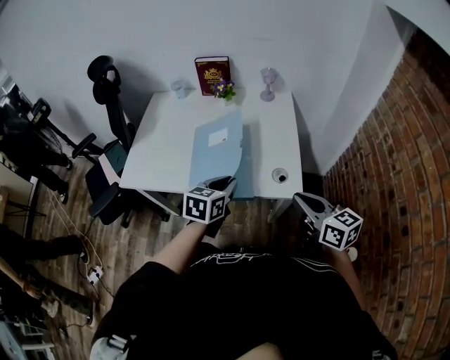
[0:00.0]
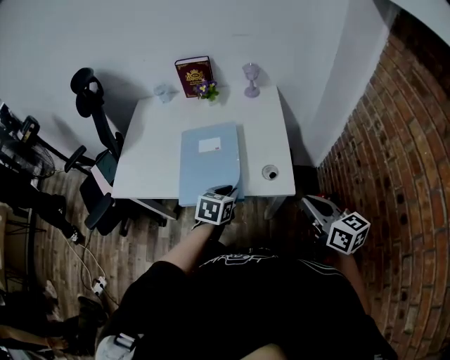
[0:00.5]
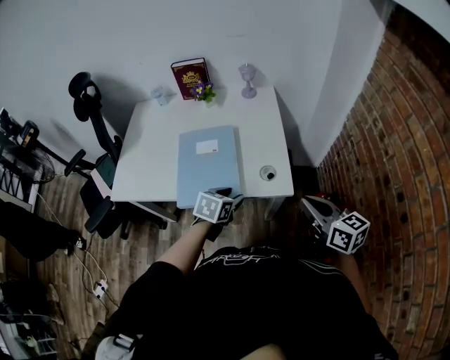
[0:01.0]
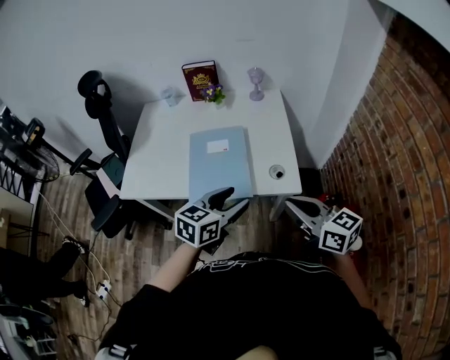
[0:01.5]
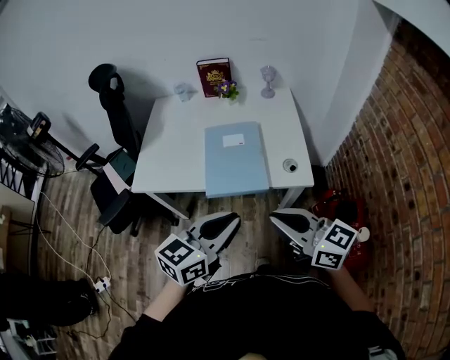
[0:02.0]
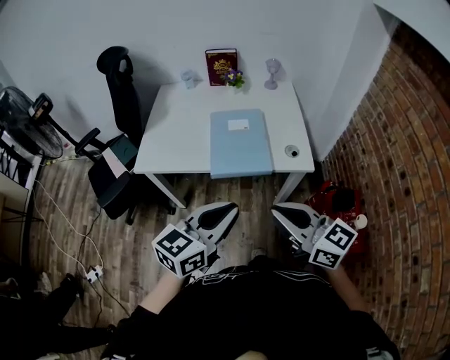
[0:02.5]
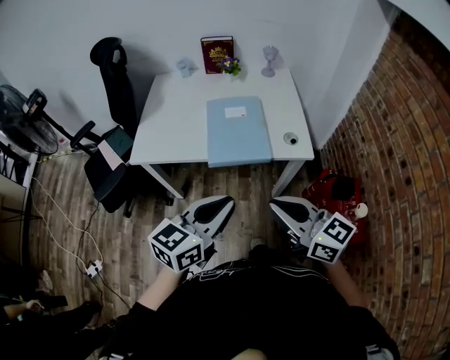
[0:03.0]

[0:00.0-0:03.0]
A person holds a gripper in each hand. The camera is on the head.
0:00.0 to 0:01.5: The left gripper goes approximately 5 cm backward, reaches approximately 10 cm downward, then returns, and opens. The right gripper moves approximately 5 cm to the right and comes back.
0:01.5 to 0:03.0: The right gripper travels to the left and backward by approximately 20 cm. The left gripper moves backward, to the left and upward, some 20 cm, and closes its fingers.

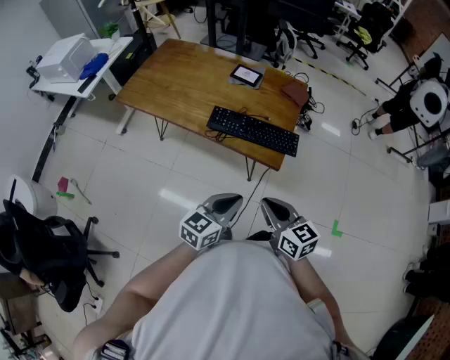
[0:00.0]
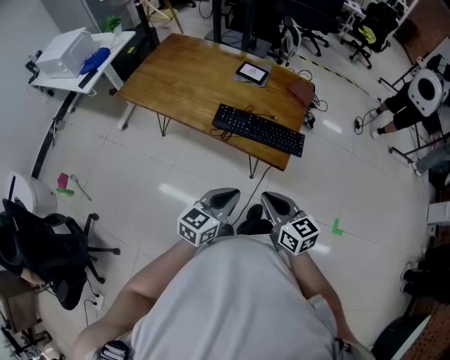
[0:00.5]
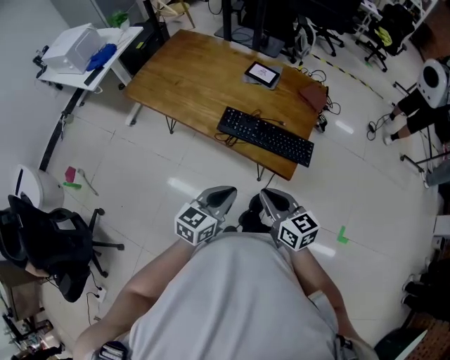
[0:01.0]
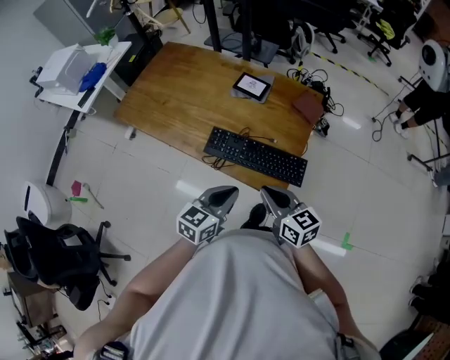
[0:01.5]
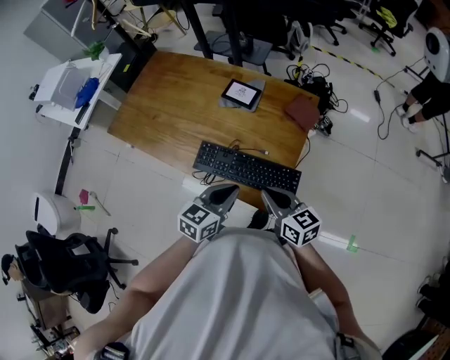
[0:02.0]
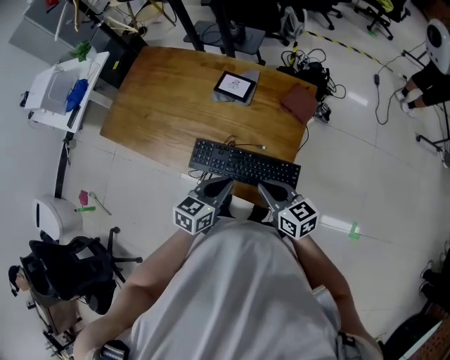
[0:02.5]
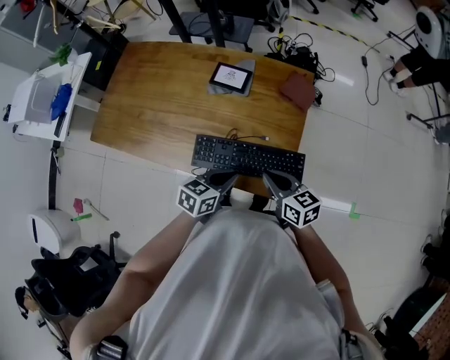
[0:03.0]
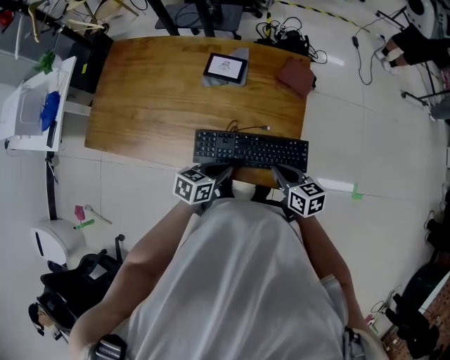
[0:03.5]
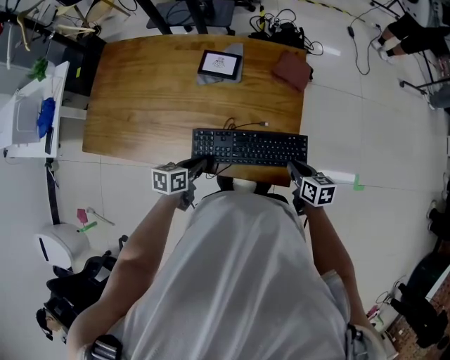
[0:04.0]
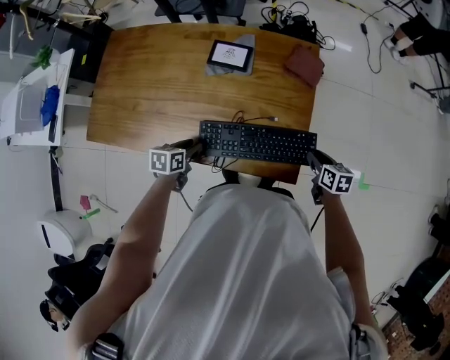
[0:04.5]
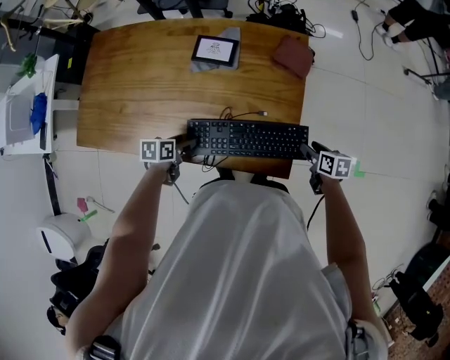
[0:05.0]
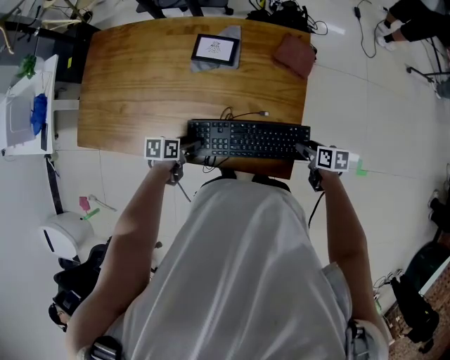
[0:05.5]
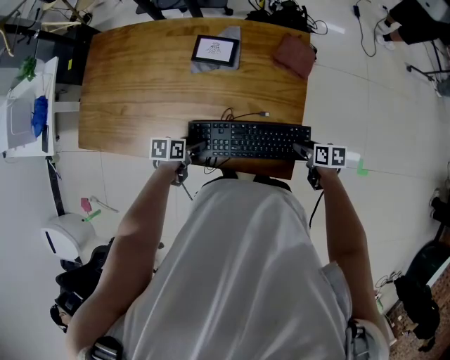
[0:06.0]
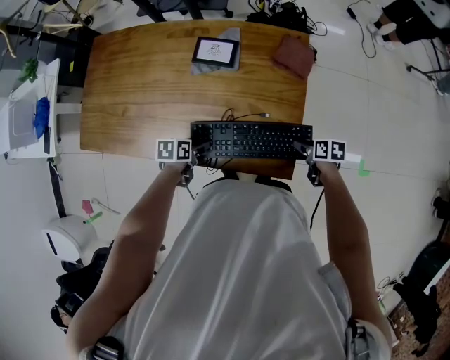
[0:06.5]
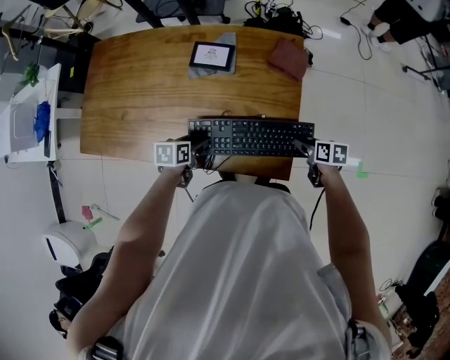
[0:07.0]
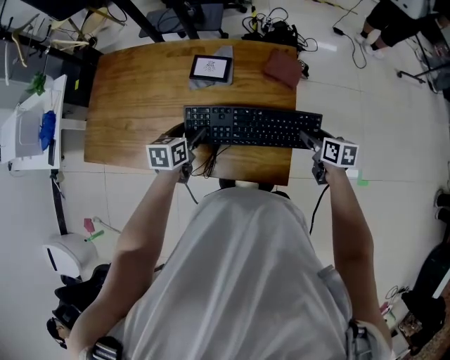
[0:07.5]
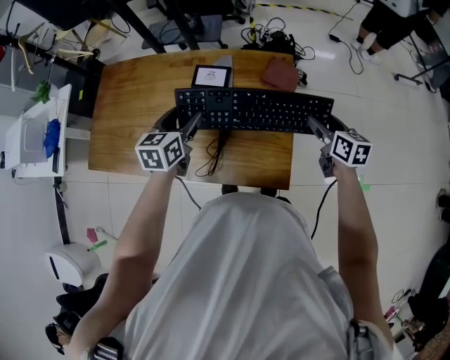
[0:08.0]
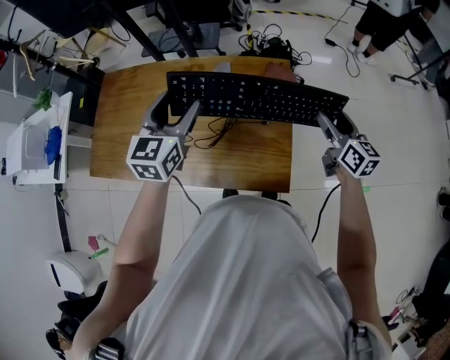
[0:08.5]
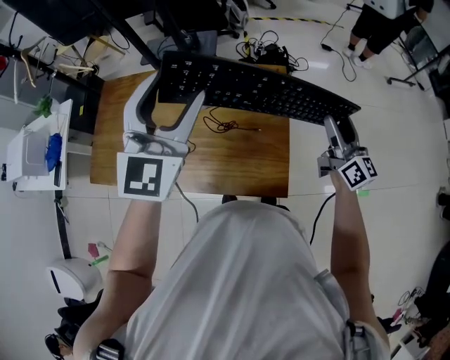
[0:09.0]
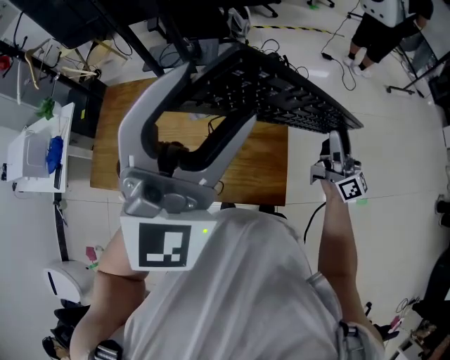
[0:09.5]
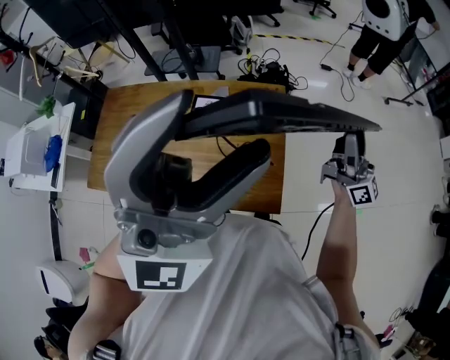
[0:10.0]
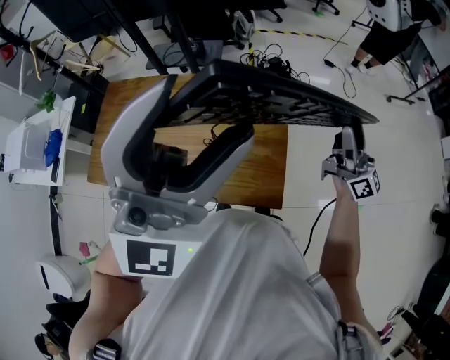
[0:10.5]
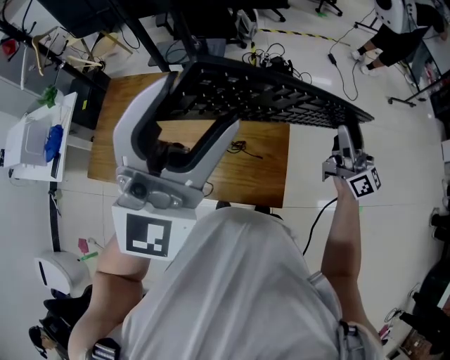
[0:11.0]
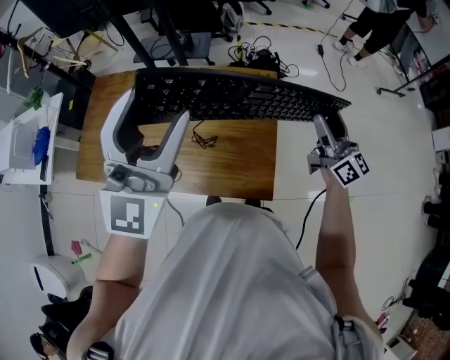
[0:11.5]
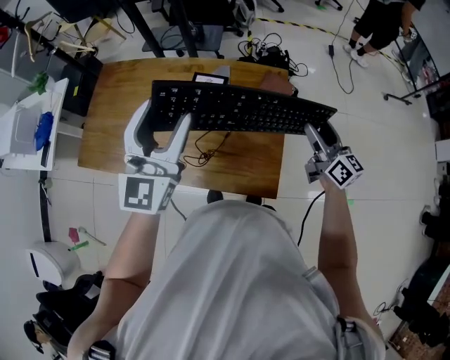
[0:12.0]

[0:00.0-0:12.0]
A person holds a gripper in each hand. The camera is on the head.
0:00.0 to 0:02.0: The grippers both shift forward by some 20 cm.
0:02.0 to 0:04.0: The left gripper is displaced to the left and downward by roughly 20 cm, and changes its angle by roughly 30 degrees, while the right gripper shifts approximately 15 cm downward and to the right, and turns by about 40 degrees.
0:04.0 to 0:06.0: The two grippers go about 5 cm downward. The left gripper opens up. The right gripper changes its angle by some 20 degrees, and opens.
0:06.0 to 0:08.0: The two grippers go roughly 25 cm upward and forward. The right gripper changes its angle by approximately 40 degrees. The left gripper changes its angle by about 50 degrees.
0:08.0 to 0:10.0: The right gripper heads upward, covering roughly 20 cm, and points its fingers approximately 60 degrees further upward. The left gripper heads upward and to the right, covering some 40 cm, and angles its fingers upward, by roughly 50 degrees.
0:10.0 to 0:12.0: The right gripper travels downward and to the left by approximately 15 cm, and tips its fingers downward by approximately 30 degrees; the left gripper moves downward and to the left, some 25 cm, and changes its angle by roughly 40 degrees.

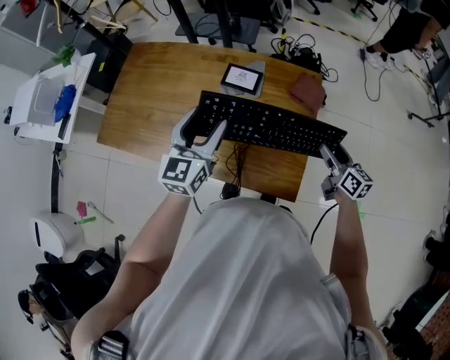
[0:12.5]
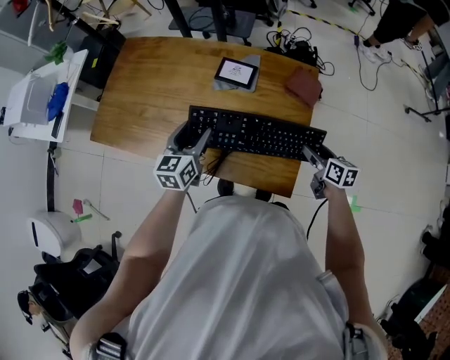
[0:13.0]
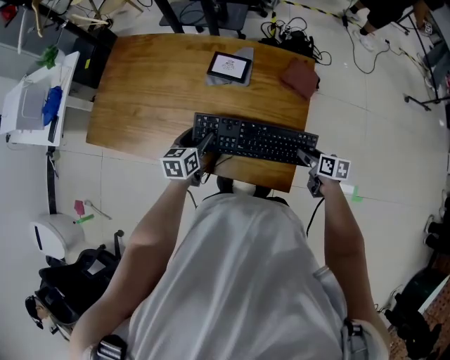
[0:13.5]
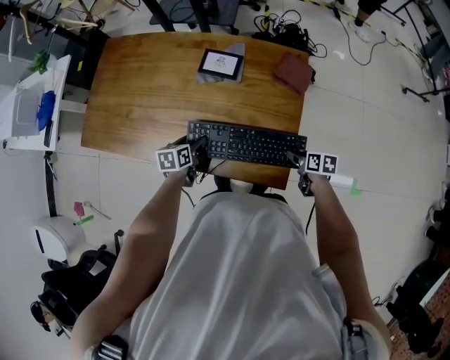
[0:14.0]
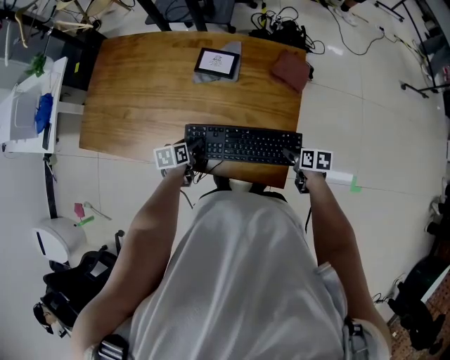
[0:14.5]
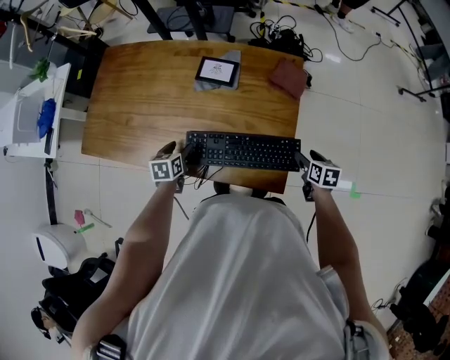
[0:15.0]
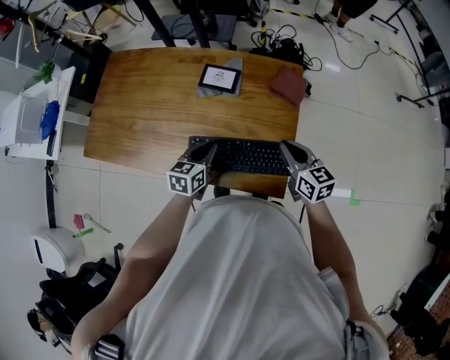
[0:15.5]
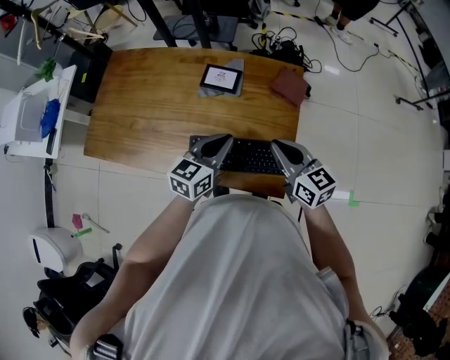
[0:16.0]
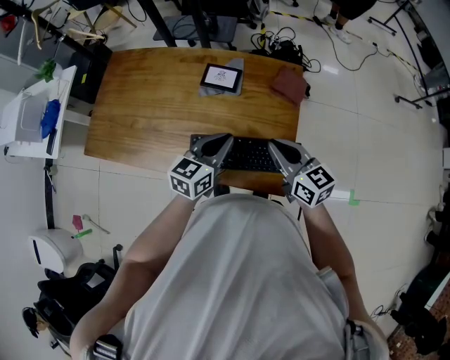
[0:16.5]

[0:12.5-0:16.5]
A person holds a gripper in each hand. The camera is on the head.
0:12.5 to 0:14.5: The left gripper goes approximately 30 cm downward, and tilts its fingers some 50 degrees downward. Meanwhile the right gripper travels downward by approximately 20 cm, and angles its fingers downward, by about 40 degrees.
0:14.5 to 0:16.5: The left gripper goes roughly 25 cm upward and to the right, points its fingers about 40 degrees further upward, and closes its fingers. Meanwhile the right gripper travels upward and to the left by approximately 30 cm, points its fingers some 40 degrees further upward, and closes up.

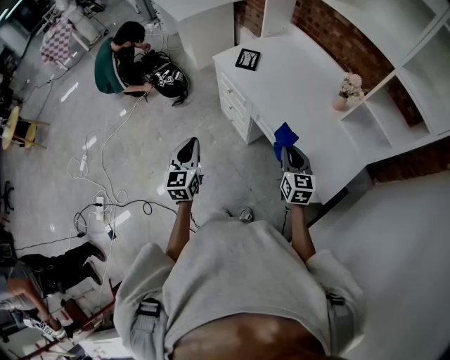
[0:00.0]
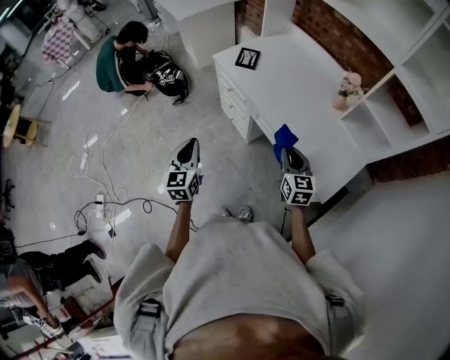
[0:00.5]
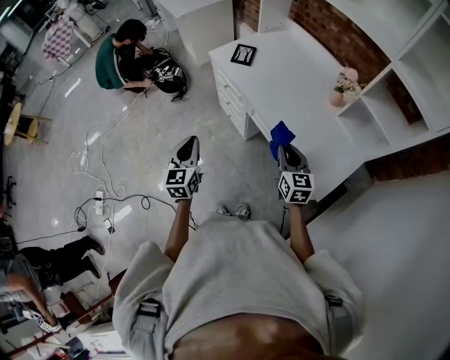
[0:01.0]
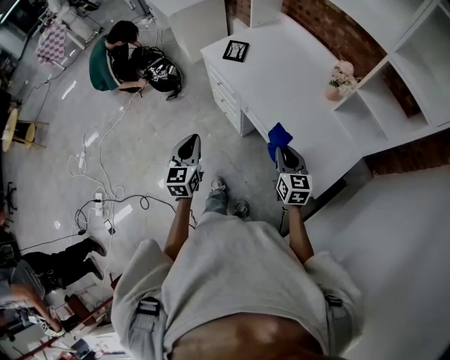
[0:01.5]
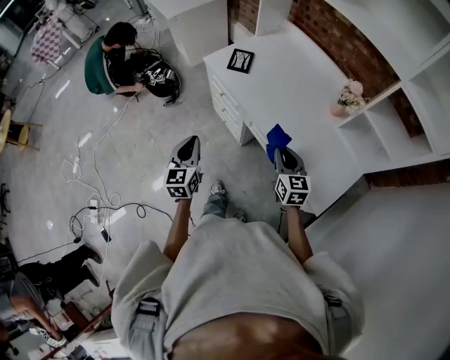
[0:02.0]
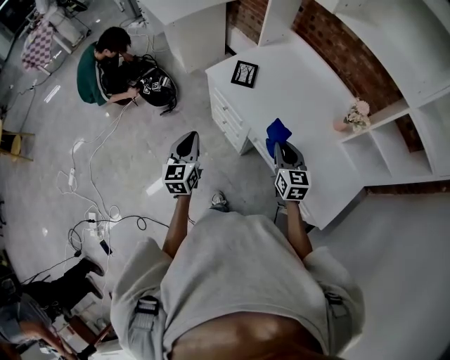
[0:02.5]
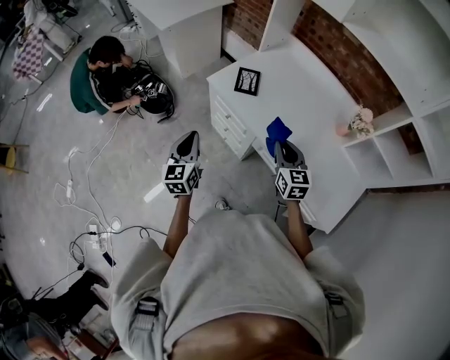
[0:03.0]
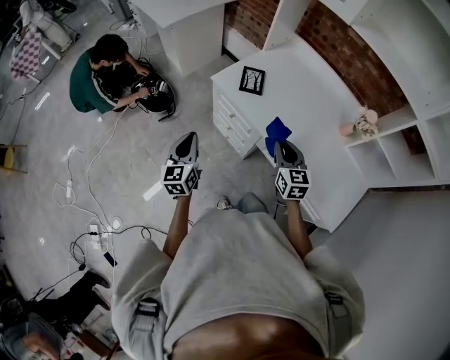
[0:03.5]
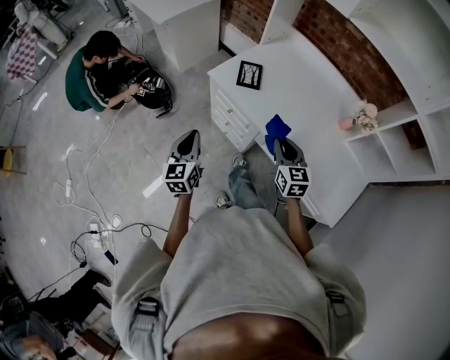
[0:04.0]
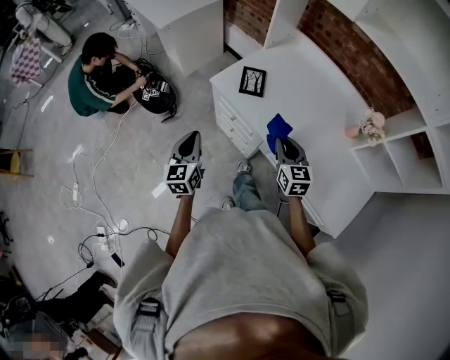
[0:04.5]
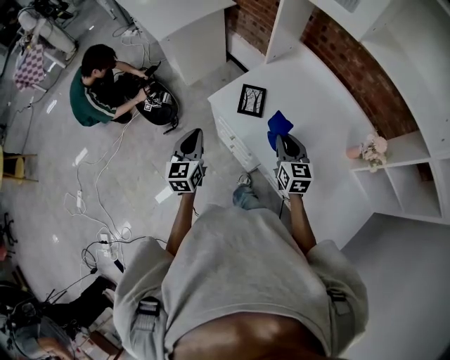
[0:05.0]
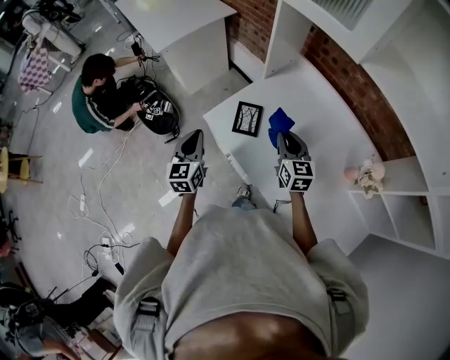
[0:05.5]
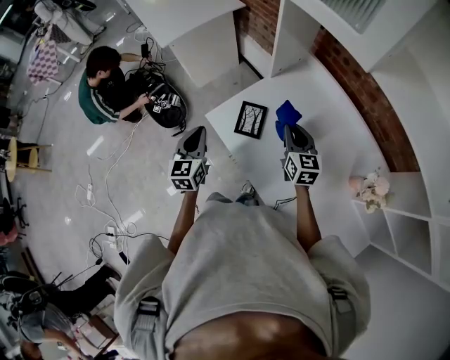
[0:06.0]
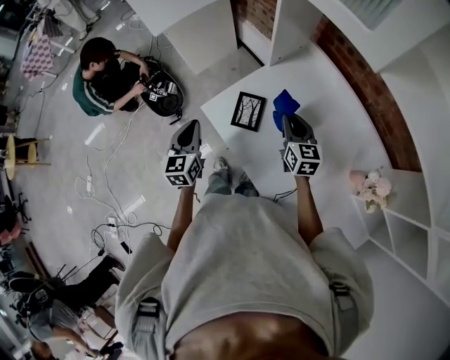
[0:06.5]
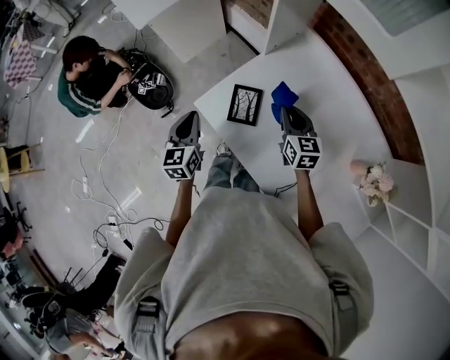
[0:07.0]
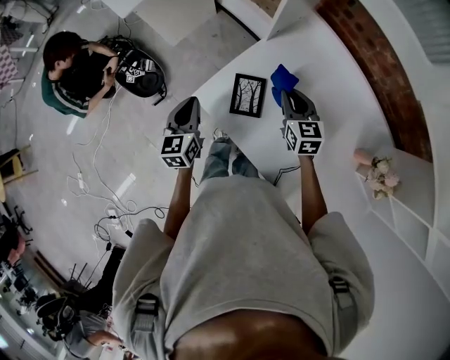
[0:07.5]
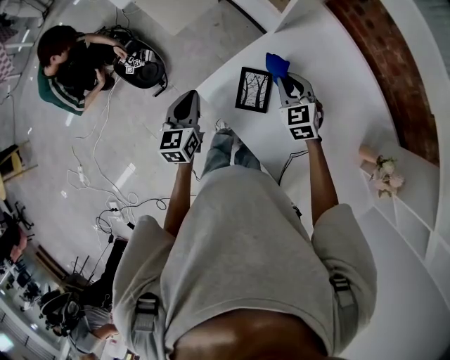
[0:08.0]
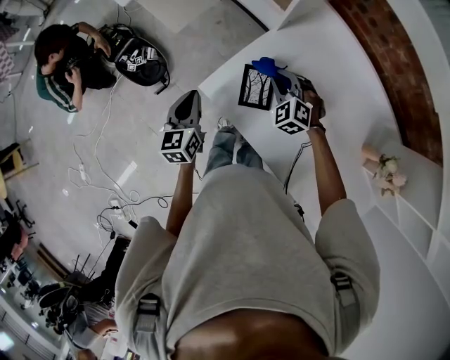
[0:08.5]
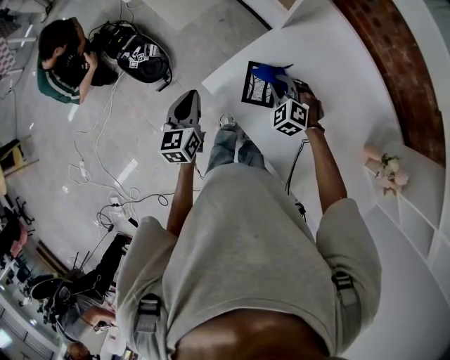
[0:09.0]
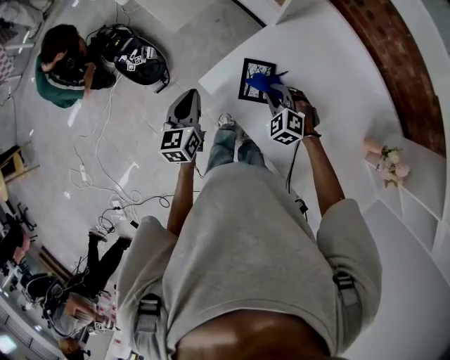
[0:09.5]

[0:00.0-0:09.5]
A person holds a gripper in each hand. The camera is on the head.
0:00.0 to 0:02.0: The two grippers go roughly 5 cm forward.
0:02.0 to 0:04.0: Both grippers move forward and to the left, approximately 20 cm.
0:04.0 to 0:05.5: Both grippers move forward, roughly 25 cm.
0:05.5 to 0:07.5: Both grippers travel together forward and downward, some 15 cm.
0:07.5 to 0:09.5: The right gripper goes about 10 cm downward and to the left, and rolls counterclockwise, seen from behind, by approximately 50 degrees.
